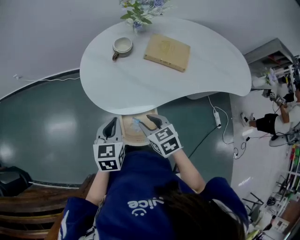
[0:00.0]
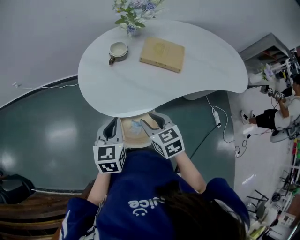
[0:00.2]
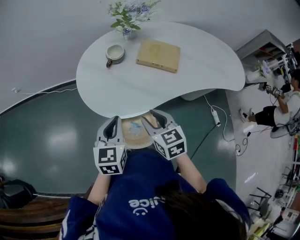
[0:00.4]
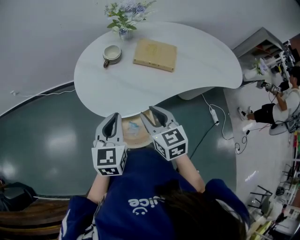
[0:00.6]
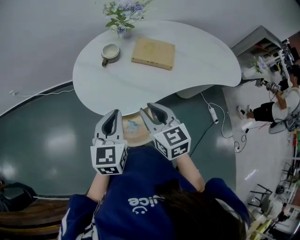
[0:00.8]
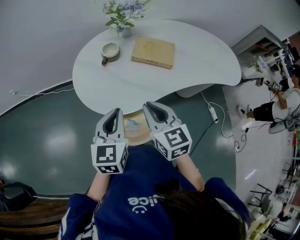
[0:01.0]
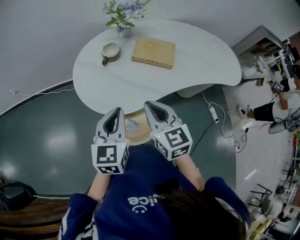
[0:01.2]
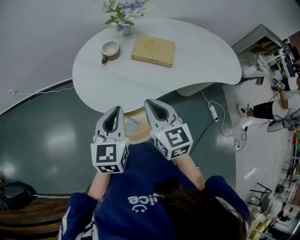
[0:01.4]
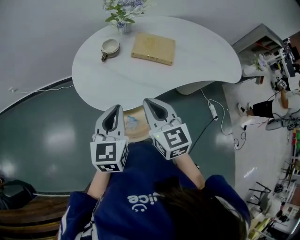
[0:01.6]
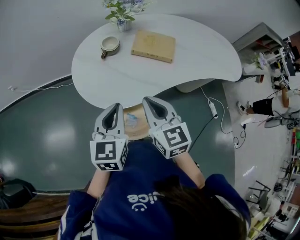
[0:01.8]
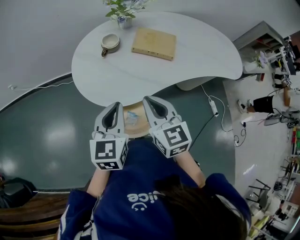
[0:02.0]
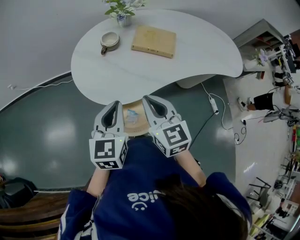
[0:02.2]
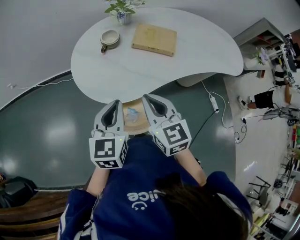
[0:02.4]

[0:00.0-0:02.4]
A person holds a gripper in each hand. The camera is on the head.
0.0 to 1.2 s: The left gripper shifts roughly 10 cm upward and to the right; the right gripper is displaced upward by some 15 cm, turns by roughly 30 degrees, and closes its fingers.
1.2 to 2.4 s: The grippers stay close to where they were, moving slightly.

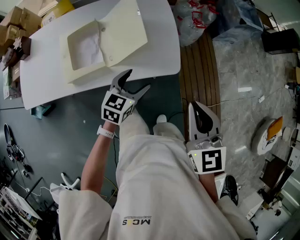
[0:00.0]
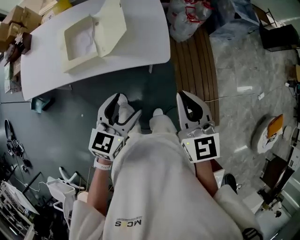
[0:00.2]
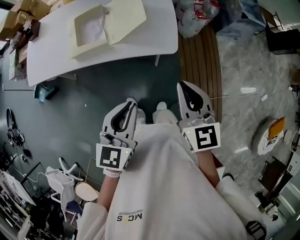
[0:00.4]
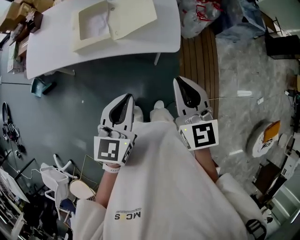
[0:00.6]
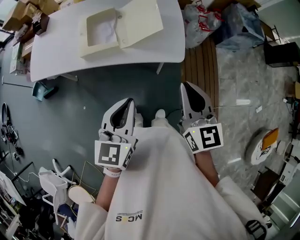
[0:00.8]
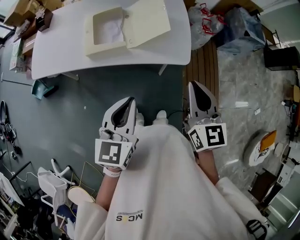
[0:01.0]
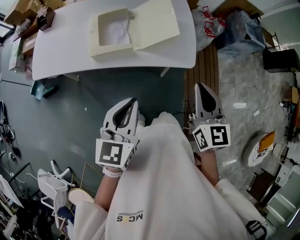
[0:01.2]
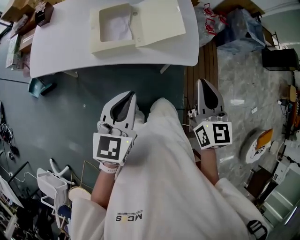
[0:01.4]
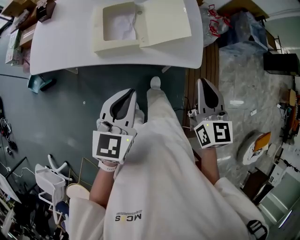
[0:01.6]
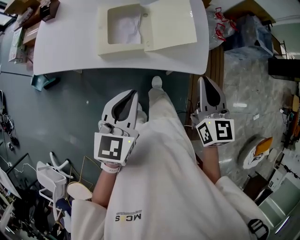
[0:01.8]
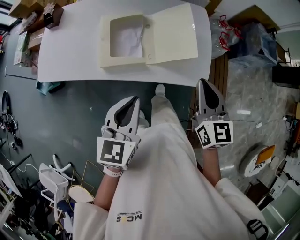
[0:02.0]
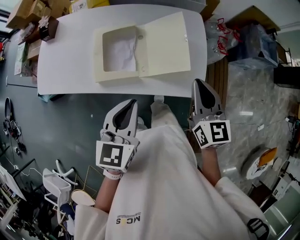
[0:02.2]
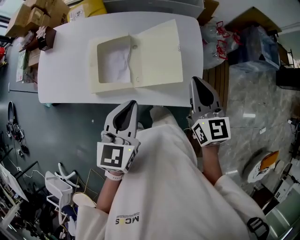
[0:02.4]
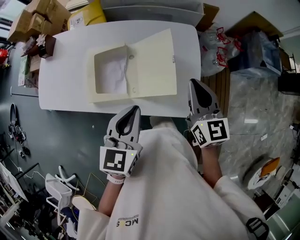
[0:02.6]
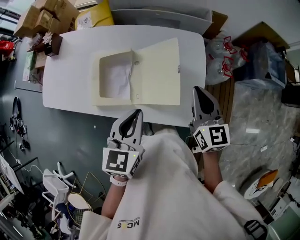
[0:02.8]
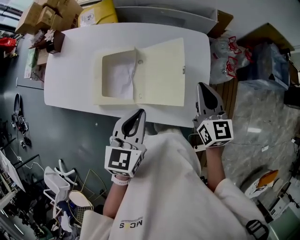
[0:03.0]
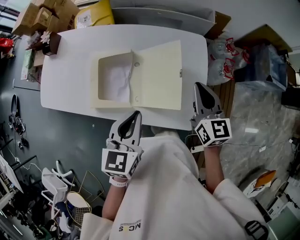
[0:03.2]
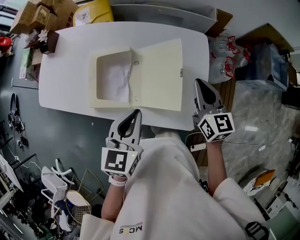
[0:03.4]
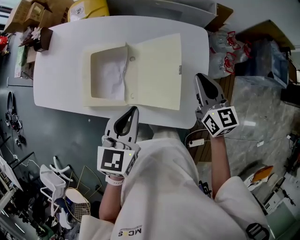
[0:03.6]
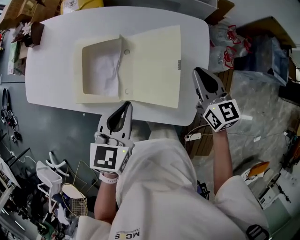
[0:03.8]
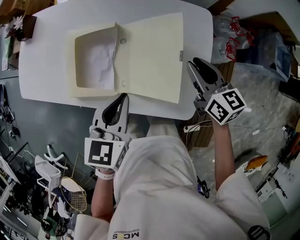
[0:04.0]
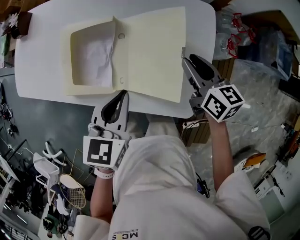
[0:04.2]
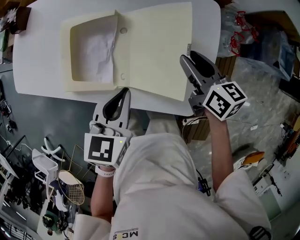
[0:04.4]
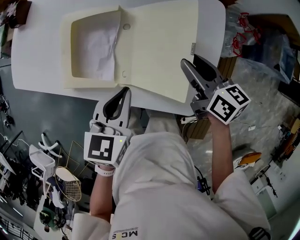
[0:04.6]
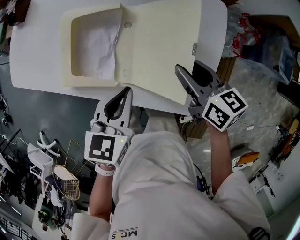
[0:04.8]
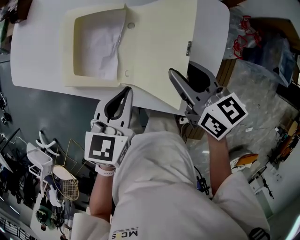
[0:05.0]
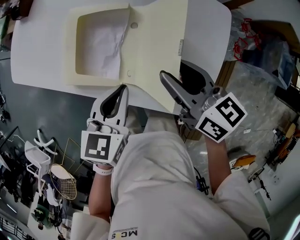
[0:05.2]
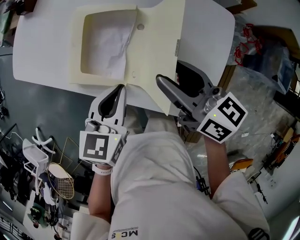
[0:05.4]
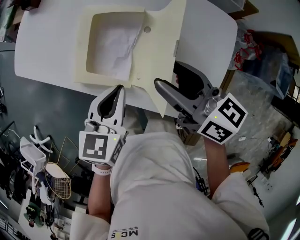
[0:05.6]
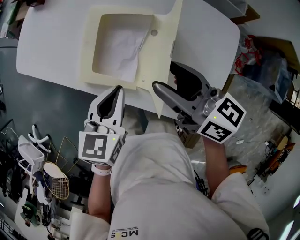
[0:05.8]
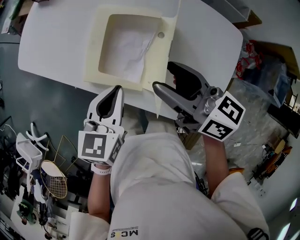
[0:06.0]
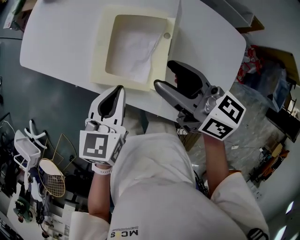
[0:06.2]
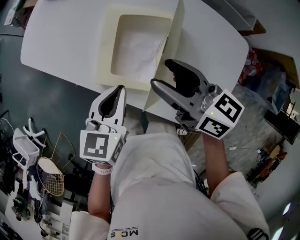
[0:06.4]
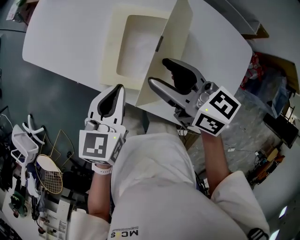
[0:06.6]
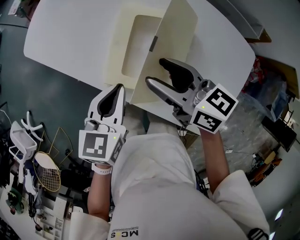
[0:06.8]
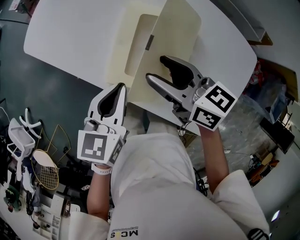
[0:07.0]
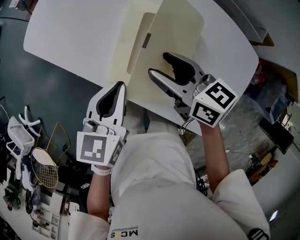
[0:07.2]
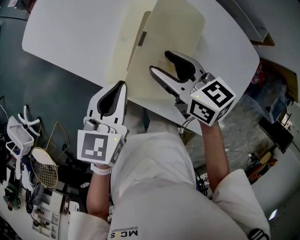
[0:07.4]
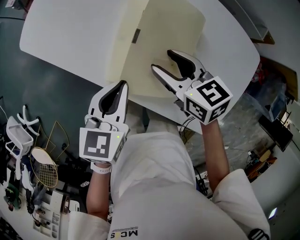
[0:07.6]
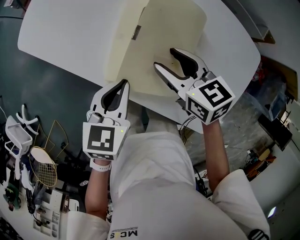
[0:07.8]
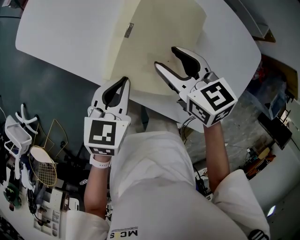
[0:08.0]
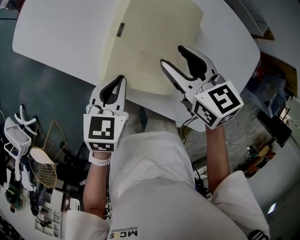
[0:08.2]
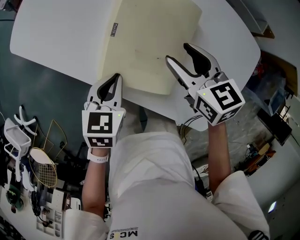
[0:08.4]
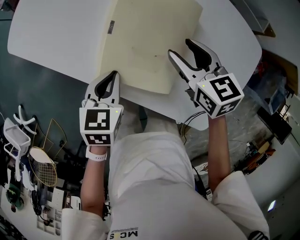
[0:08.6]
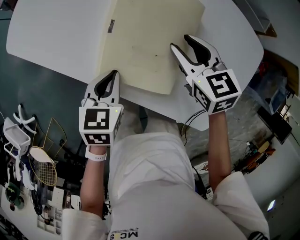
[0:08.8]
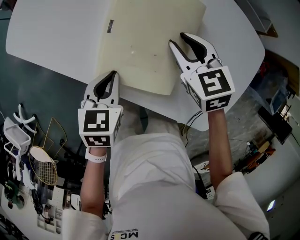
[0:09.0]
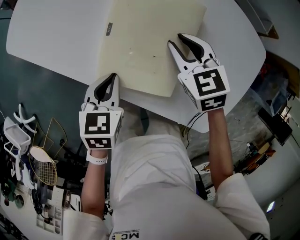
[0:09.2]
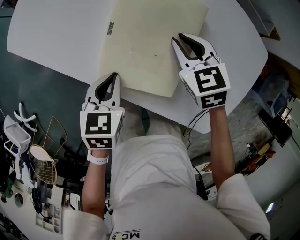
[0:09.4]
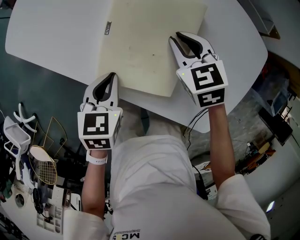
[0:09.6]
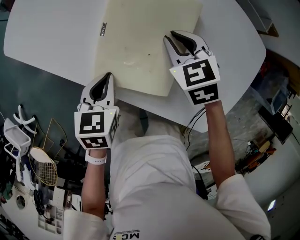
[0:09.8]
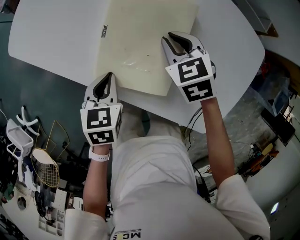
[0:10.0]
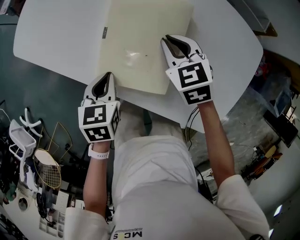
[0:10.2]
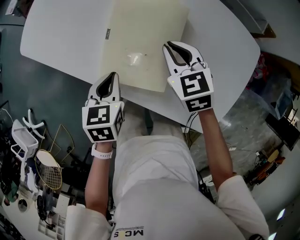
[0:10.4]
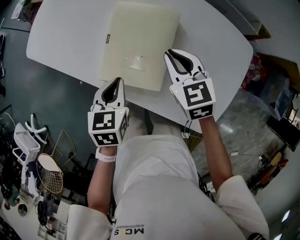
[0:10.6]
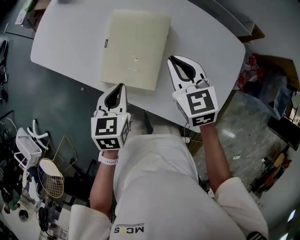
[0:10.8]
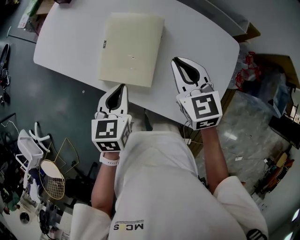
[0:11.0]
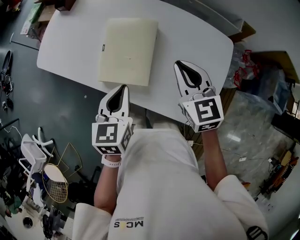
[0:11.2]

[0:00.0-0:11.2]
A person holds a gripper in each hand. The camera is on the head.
0.0 to 1.6 s: The left gripper travels upward, to the left and backward by some 25 cm, rotates about 30 degrees, and closes up; the right gripper is displaced to the left by roughly 10 cm.
1.6 to 3.2 s: The two grippers go some 30 cm forward.
3.2 to 4.8 s: The right gripper goes some 15 cm downward and to the left, rotates some 40 degrees, and opens, while the left gripper goes approximately 10 cm downward.
4.8 to 6.4 s: The two grippers go about 20 cm to the left and forward. The right gripper changes its angle by approximately 30 degrees, and opens.
6.4 to 8.0 s: The right gripper shifts roughly 10 cm downward, and changes its angle by some 20 degrees. Meanwhile the left gripper moves downward, roughly 5 cm.
8.0 to 9.6 s: Both grippers move downward, some 5 cm. The right gripper rotates some 20 degrees, and closes up.
9.6 to 11.2 s: The left gripper shifts about 20 cm upward and to the right, and turns by some 20 degrees. The right gripper moves upward, backward and to the right, approximately 25 cm, and swivels about 30 degrees.

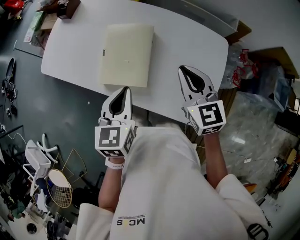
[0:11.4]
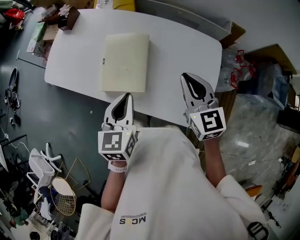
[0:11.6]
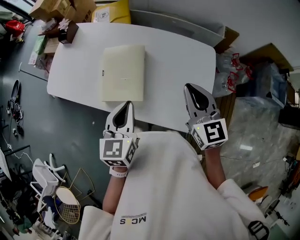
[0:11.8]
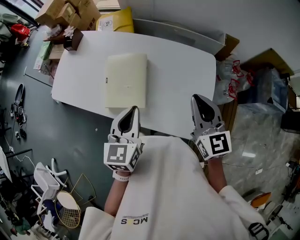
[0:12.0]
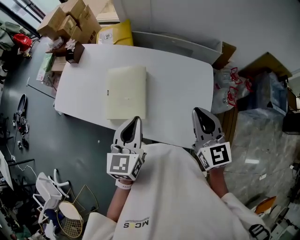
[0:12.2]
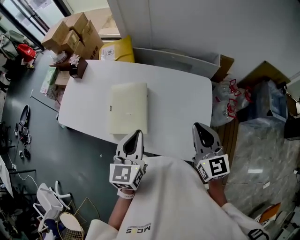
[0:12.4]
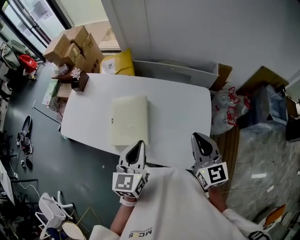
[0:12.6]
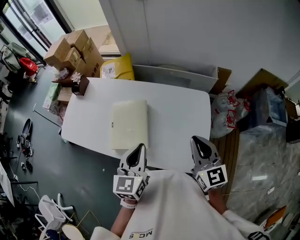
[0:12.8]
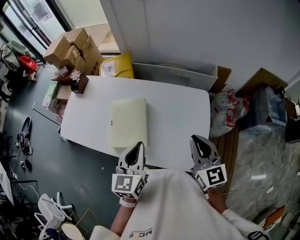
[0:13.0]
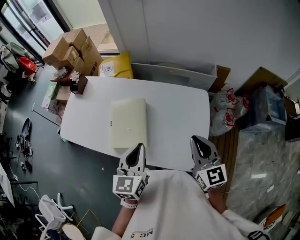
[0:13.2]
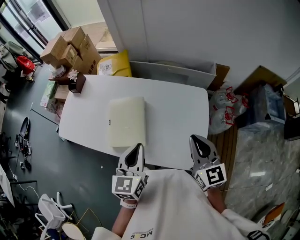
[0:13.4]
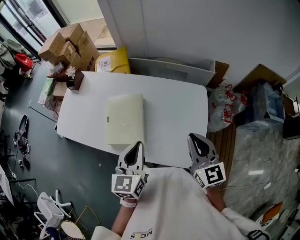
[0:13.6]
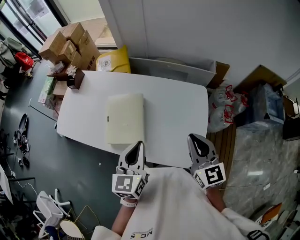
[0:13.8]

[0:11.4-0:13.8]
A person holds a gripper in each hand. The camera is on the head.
11.4 to 12.6 s: The right gripper travels to the right, upward and backward by about 15 cm, while the left gripper moves upward and to the right, about 10 cm.
12.6 to 13.8 s: The two grippers keep their place.

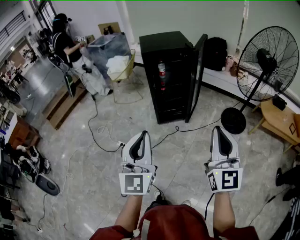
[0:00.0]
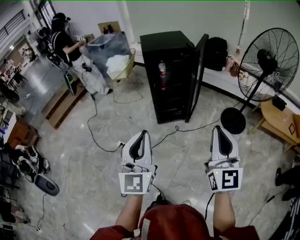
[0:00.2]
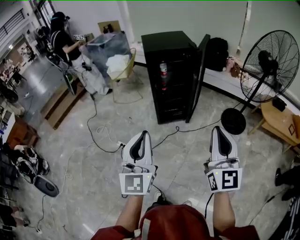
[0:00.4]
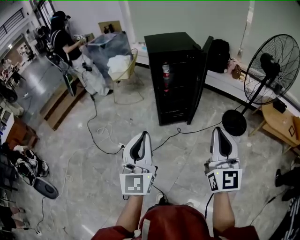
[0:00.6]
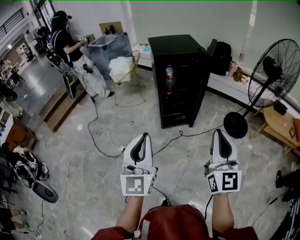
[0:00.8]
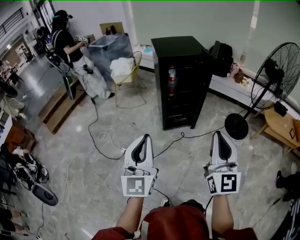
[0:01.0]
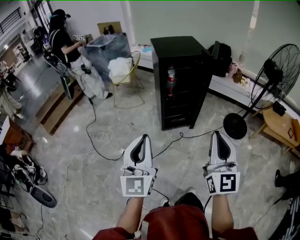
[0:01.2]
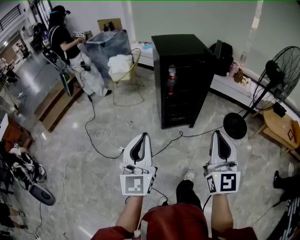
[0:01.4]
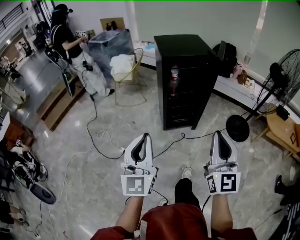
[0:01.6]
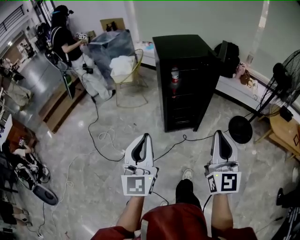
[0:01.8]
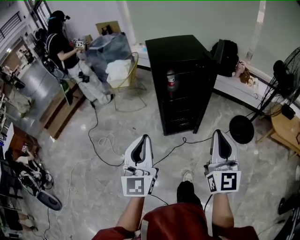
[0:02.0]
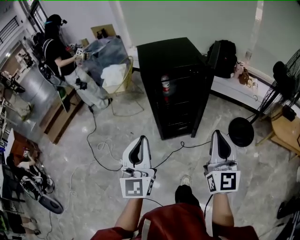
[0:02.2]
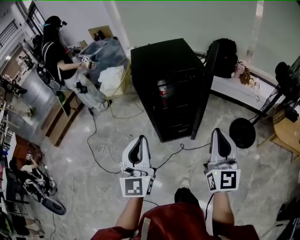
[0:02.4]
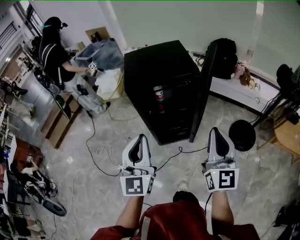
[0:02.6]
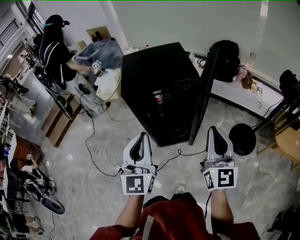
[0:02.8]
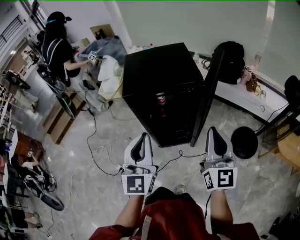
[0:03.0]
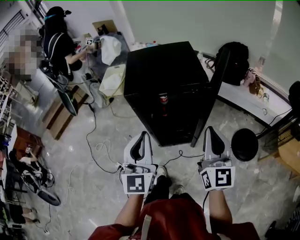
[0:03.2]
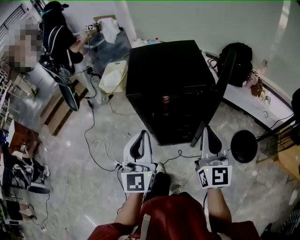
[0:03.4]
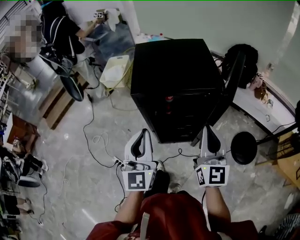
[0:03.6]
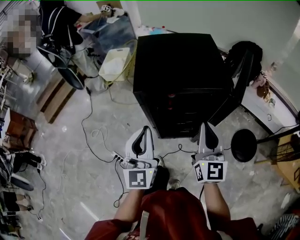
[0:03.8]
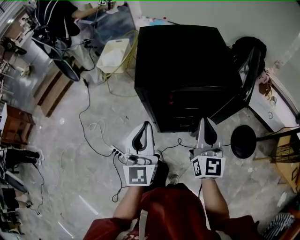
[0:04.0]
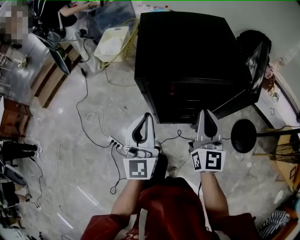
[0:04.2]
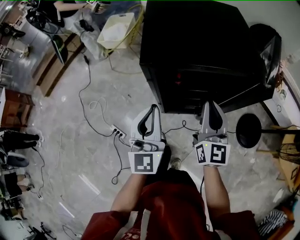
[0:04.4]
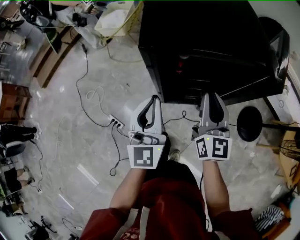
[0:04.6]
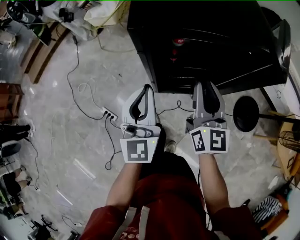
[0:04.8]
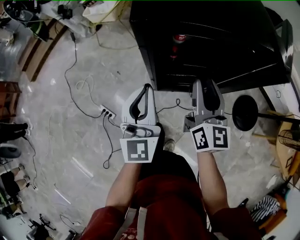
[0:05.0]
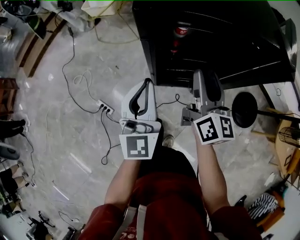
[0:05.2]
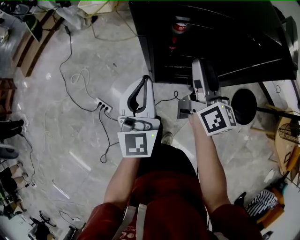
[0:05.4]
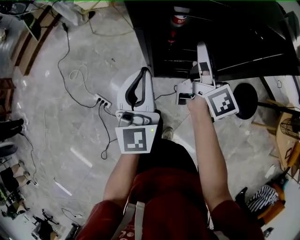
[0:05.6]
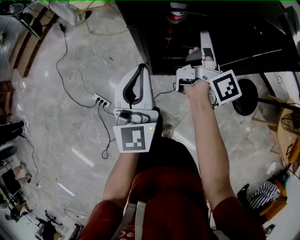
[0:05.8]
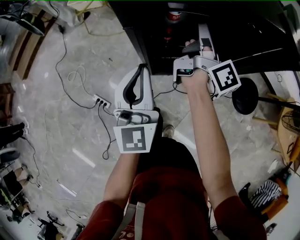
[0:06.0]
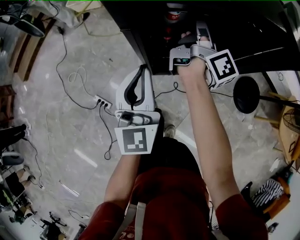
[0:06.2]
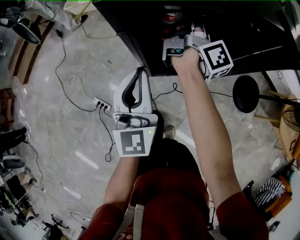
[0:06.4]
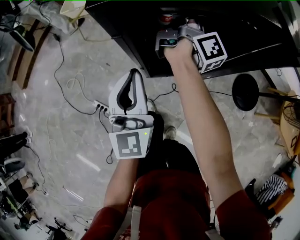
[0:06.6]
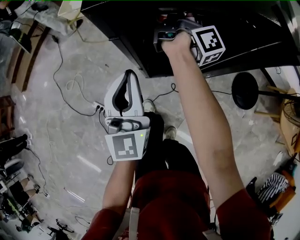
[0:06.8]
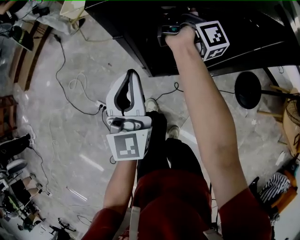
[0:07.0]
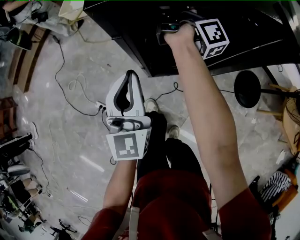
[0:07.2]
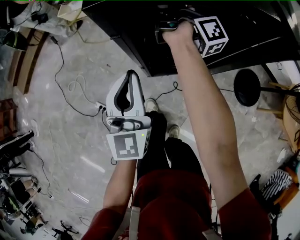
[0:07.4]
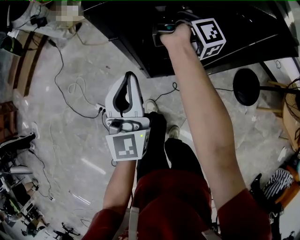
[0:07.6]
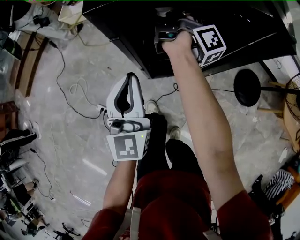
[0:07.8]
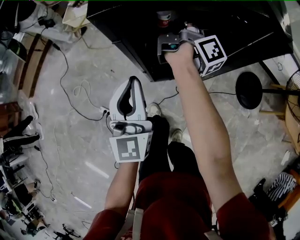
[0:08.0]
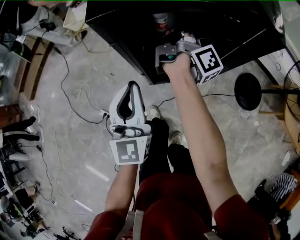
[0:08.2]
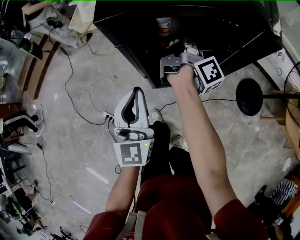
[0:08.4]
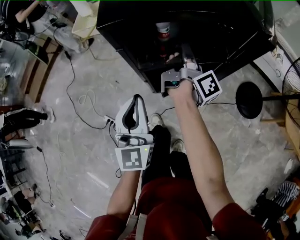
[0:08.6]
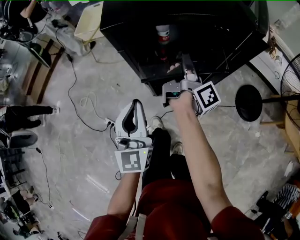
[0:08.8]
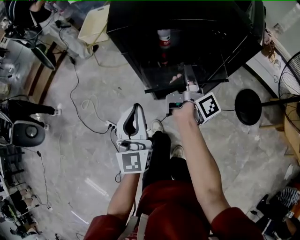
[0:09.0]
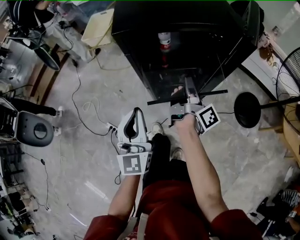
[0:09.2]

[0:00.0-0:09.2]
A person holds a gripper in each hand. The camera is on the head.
0.0 to 1.6 s: Both grippers move to the left and forward, roughly 20 cm.
1.6 to 3.0 s: The two grippers go about 35 cm forward and to the right.
3.0 to 4.6 s: The grippers both shift downward, forward and to the left by some 25 cm.
4.6 to 6.2 s: The right gripper is displaced forward and downward by roughly 15 cm, rotates around the line of its fingers by approximately 70 degrees, clockwise from behind, and opens its fingers, while the left gripper goes some 5 cm downward.
6.2 to 7.6 s: The right gripper is displaced forward by approximately 10 cm, and closes up.
7.6 to 9.2 s: The left gripper goes about 10 cm backward. The right gripper travels backward by some 25 cm.
